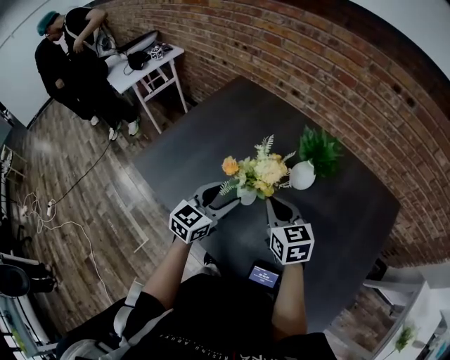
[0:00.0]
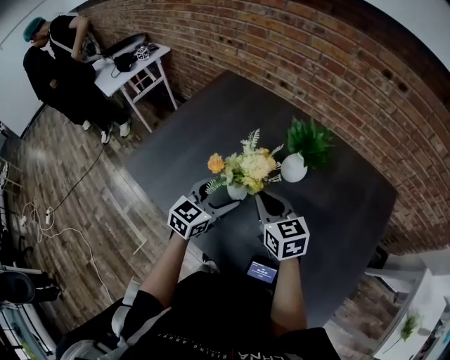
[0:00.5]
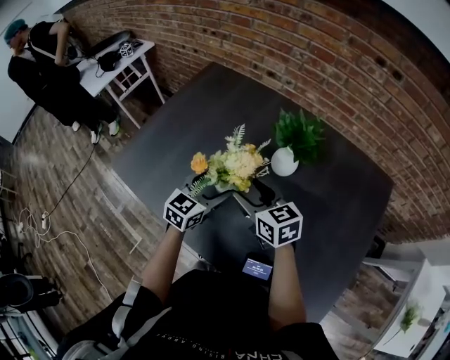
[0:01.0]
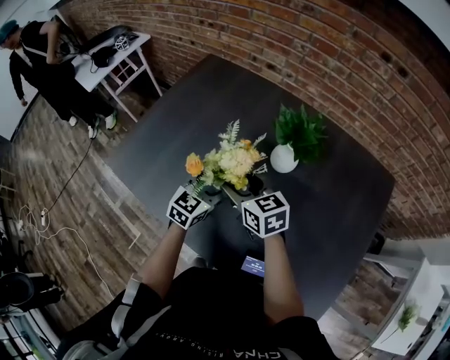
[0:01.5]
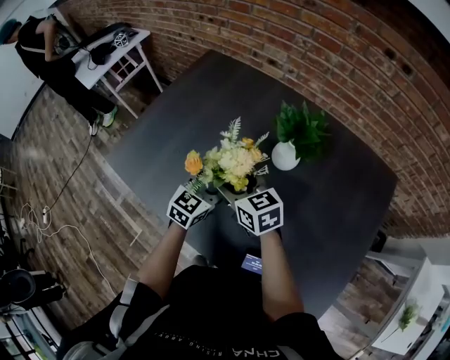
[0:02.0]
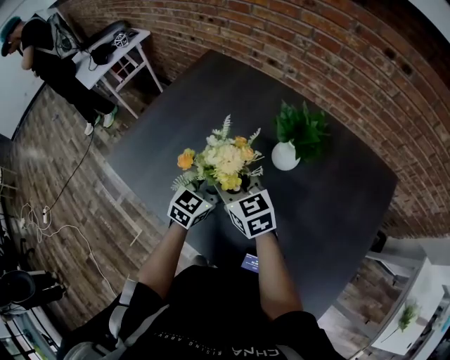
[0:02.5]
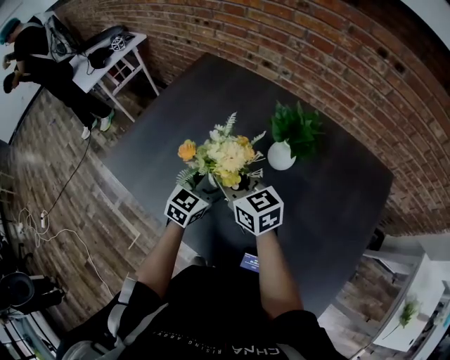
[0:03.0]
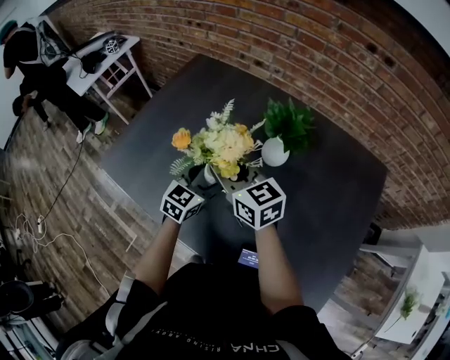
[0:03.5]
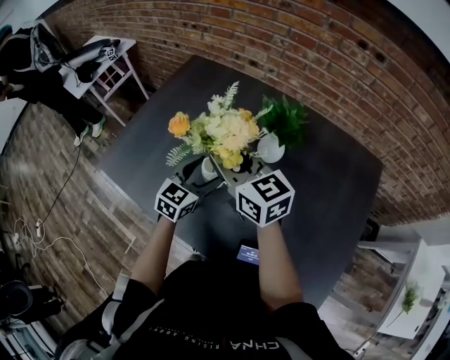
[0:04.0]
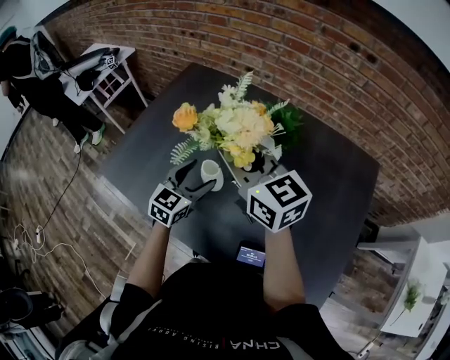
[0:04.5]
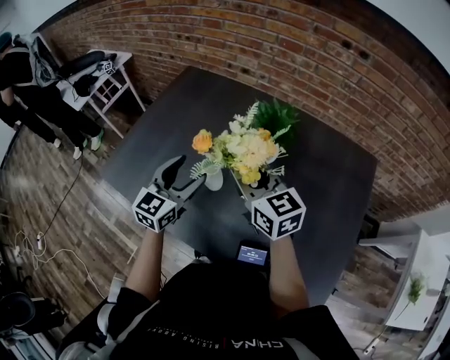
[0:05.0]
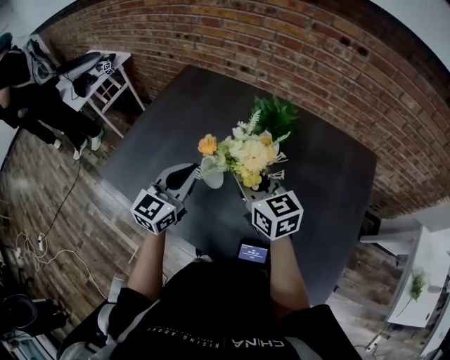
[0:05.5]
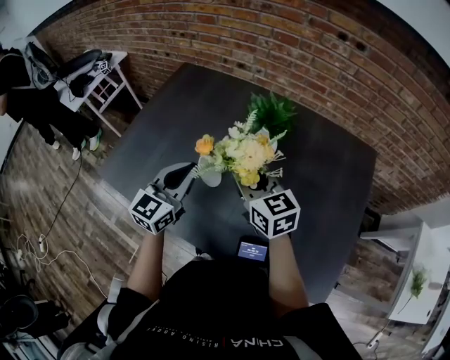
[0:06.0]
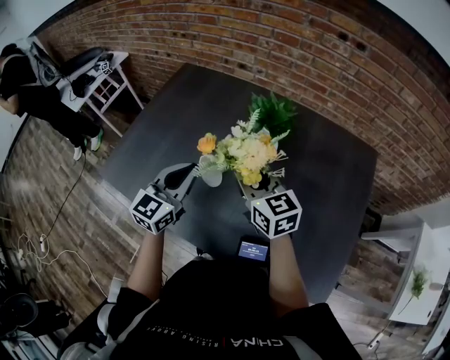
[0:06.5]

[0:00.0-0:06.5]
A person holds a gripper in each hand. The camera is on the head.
0:00.0 to 0:02.0: The left gripper heads downward and forward, covering roughly 10 cm; the right gripper goes approximately 5 cm to the left, and opens up.
0:02.0 to 0:04.5: The left gripper shifts by about 5 cm; the right gripper heads upward, covering roughly 20 cm, swivels roughly 20 degrees, and closes.
0:04.5 to 0:06.5: The left gripper is displaced upward by approximately 10 cm, and closes. The right gripper moves downward, some 10 cm.

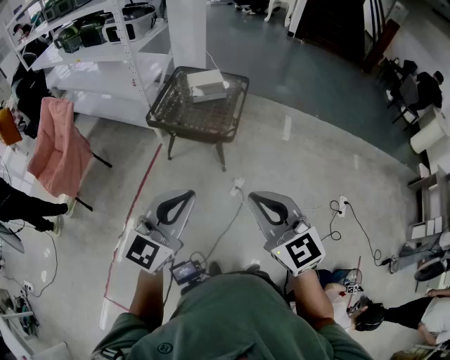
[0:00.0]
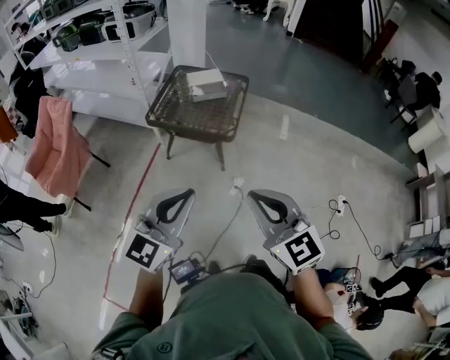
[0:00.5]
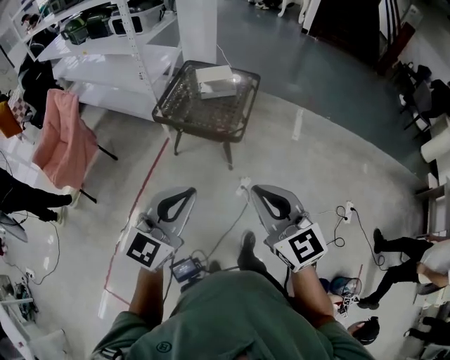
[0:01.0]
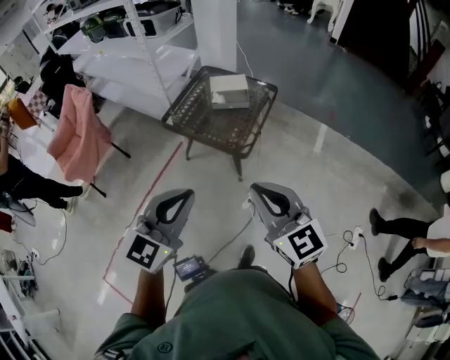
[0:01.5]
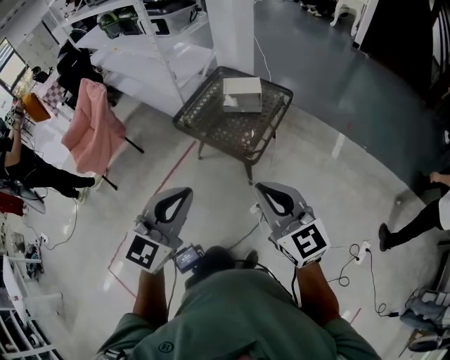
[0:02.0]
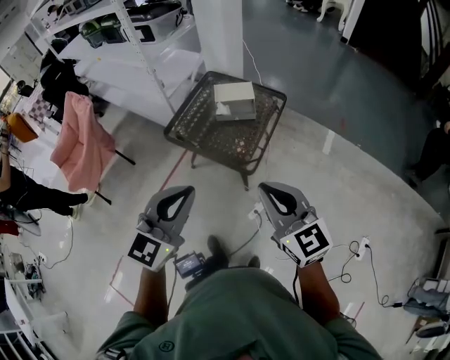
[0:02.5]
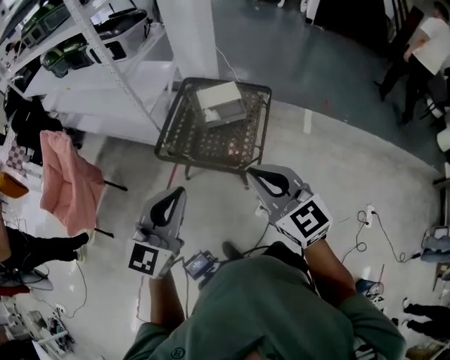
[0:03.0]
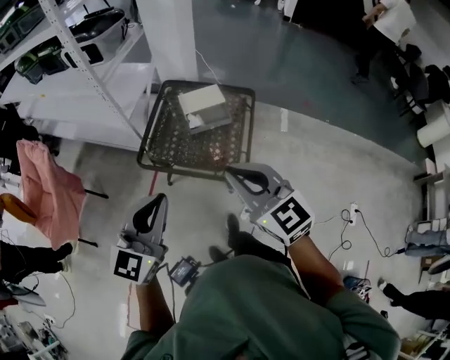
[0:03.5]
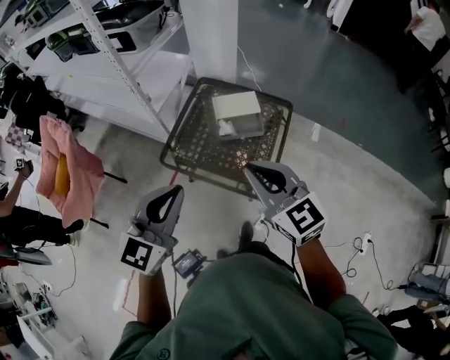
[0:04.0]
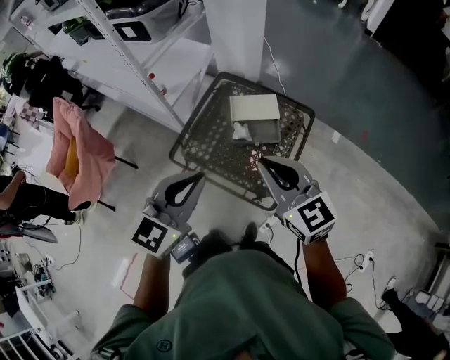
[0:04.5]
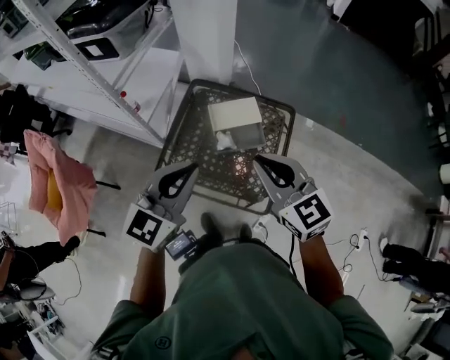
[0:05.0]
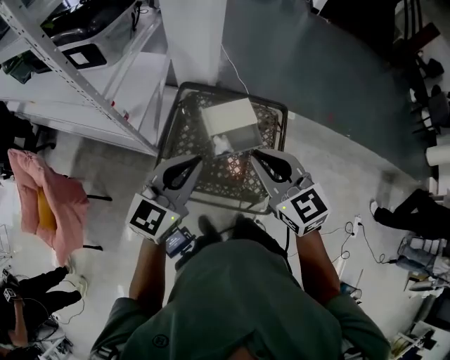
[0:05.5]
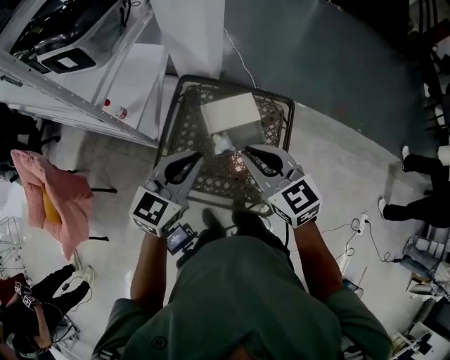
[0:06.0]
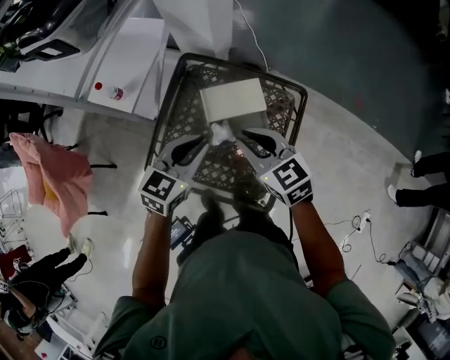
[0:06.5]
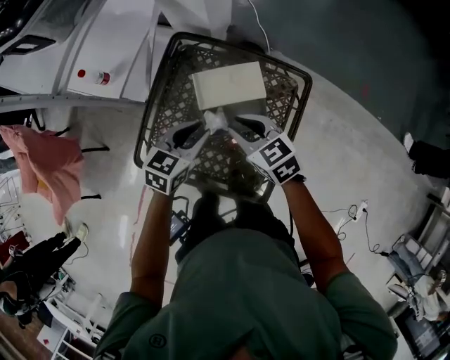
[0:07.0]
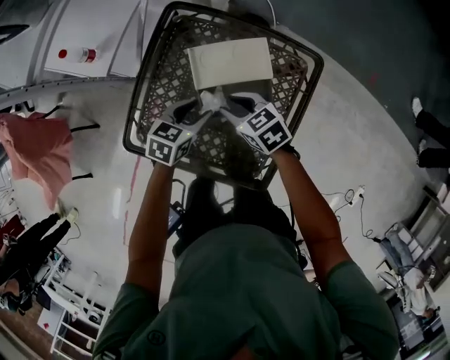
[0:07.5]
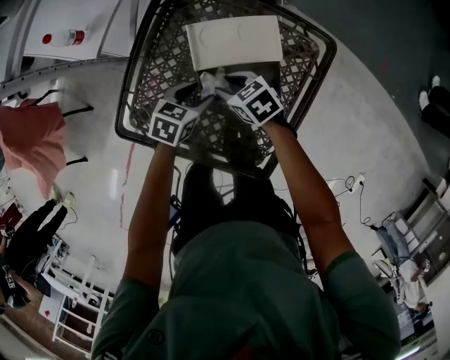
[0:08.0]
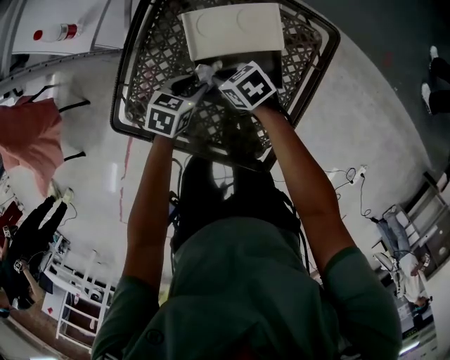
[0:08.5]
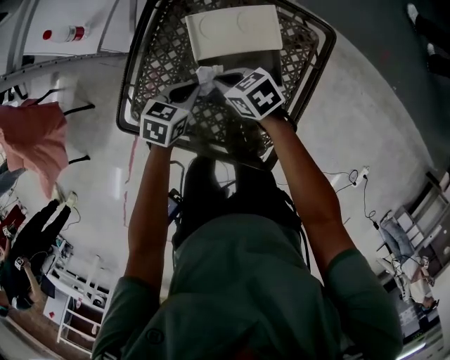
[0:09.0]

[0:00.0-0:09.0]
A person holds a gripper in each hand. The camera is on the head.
0:00.0 to 0:02.0: Both grippers move forward and to the right, about 25 cm. The left gripper changes its angle by about 20 degrees.
0:02.0 to 0:04.5: The pair of grippers is taken forward, approximately 50 cm.
0:04.5 to 0:07.0: The right gripper is displaced downward and forward by about 40 cm, and swivels about 30 degrees; the left gripper shifts about 40 cm forward and downward, rotates about 30 degrees, and opens.
0:07.0 to 0:09.0: The two grippers go roughly 15 cm downward. The left gripper closes. Meanwhile the right gripper swivels about 20 degrees, and closes.

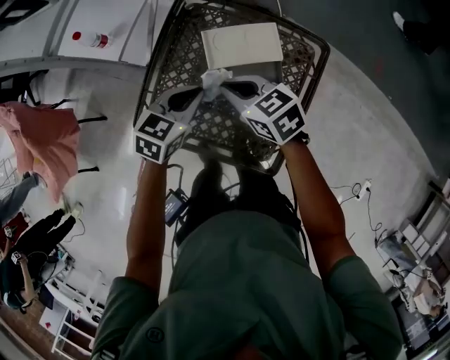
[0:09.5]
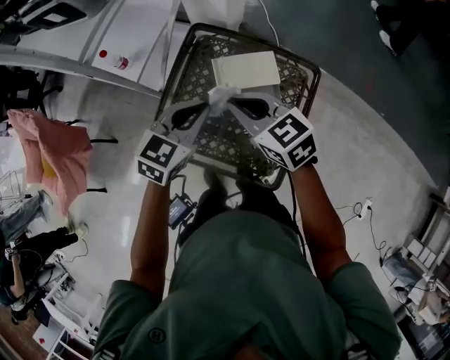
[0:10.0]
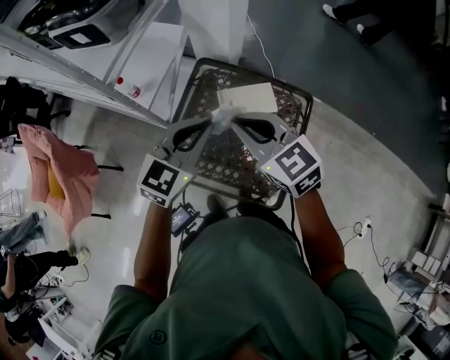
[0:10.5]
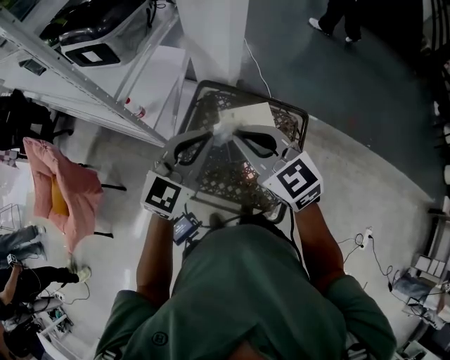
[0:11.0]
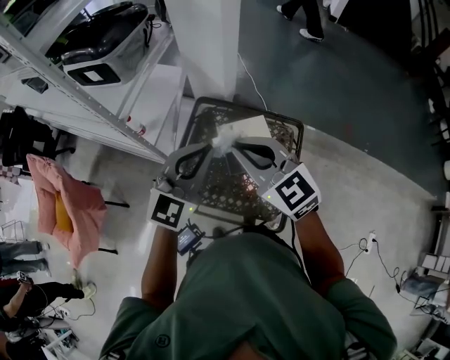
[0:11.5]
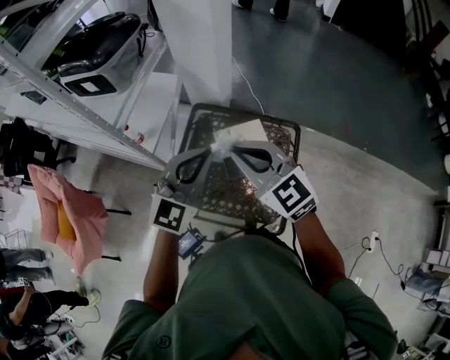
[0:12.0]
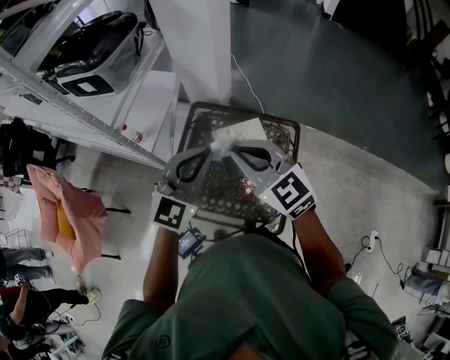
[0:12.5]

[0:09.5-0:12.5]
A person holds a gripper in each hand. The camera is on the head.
0:09.5 to 0:11.0: Both grippers move upward, approximately 30 cm. The left gripper swivels roughly 40 degrees; the right gripper turns by some 30 degrees.
0:11.0 to 0:12.5: The grippers make only small movements.

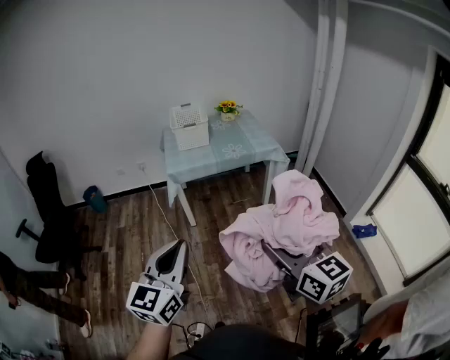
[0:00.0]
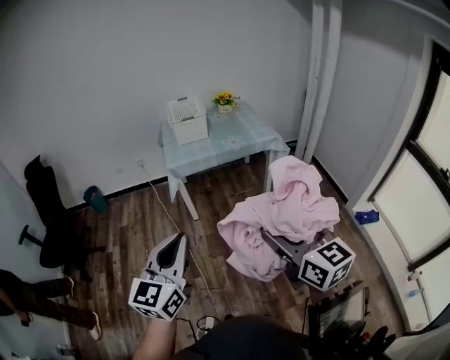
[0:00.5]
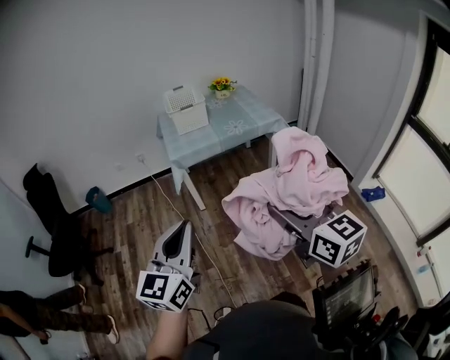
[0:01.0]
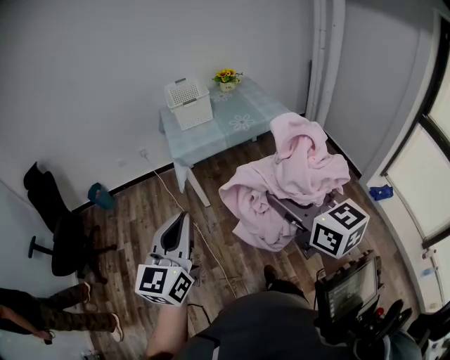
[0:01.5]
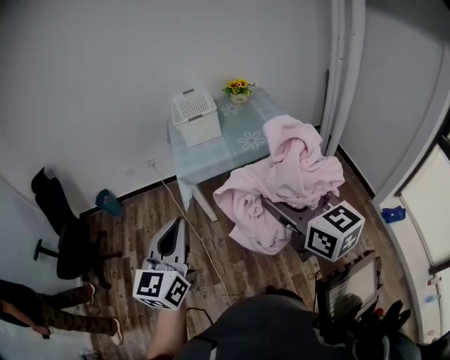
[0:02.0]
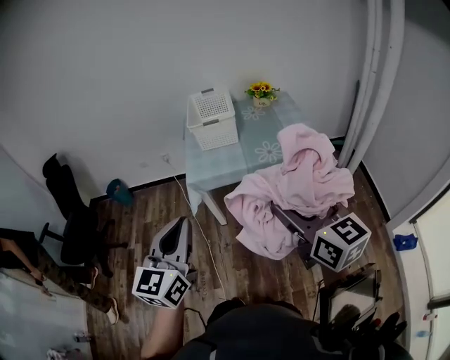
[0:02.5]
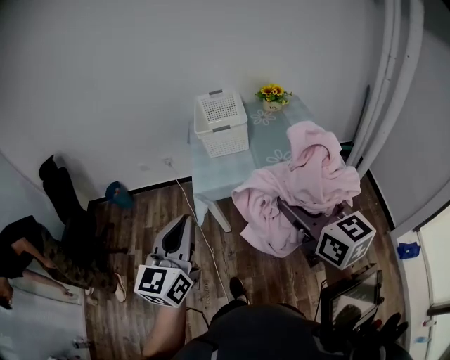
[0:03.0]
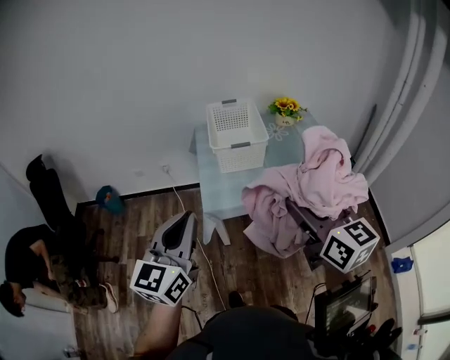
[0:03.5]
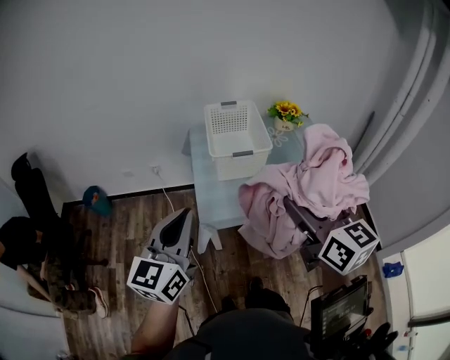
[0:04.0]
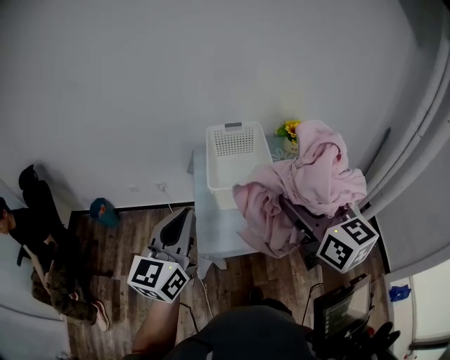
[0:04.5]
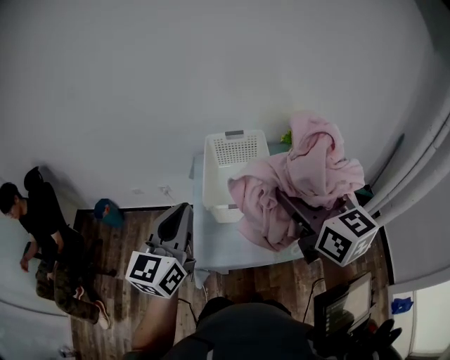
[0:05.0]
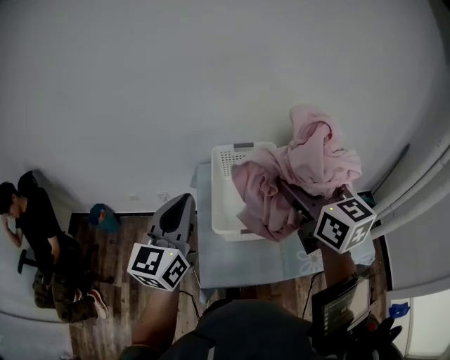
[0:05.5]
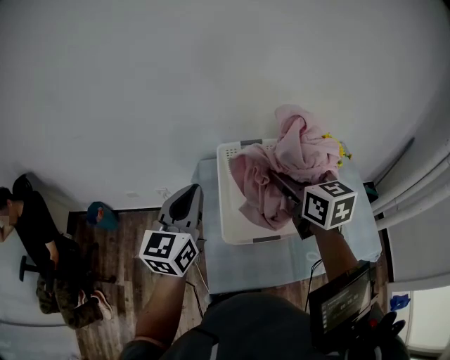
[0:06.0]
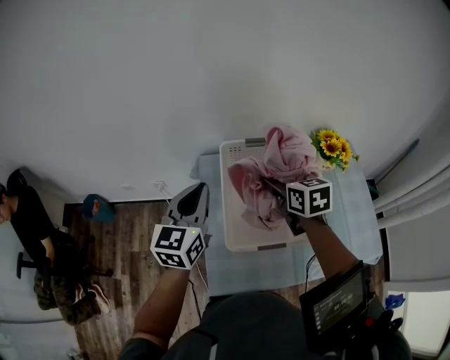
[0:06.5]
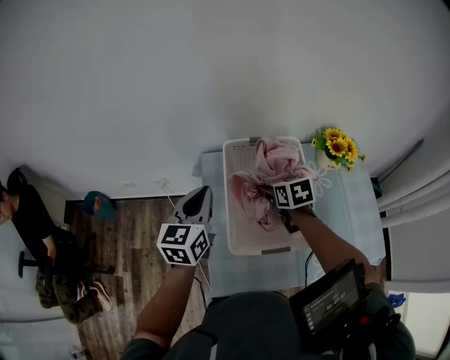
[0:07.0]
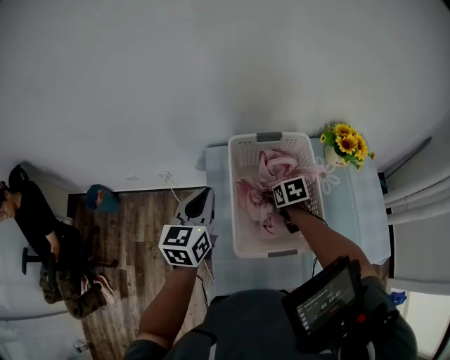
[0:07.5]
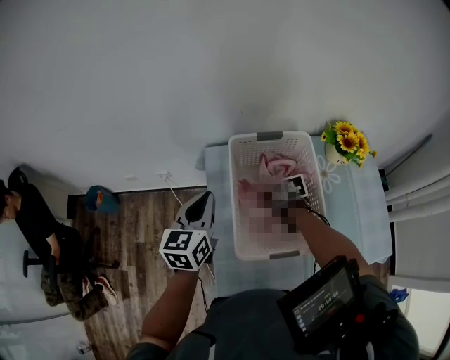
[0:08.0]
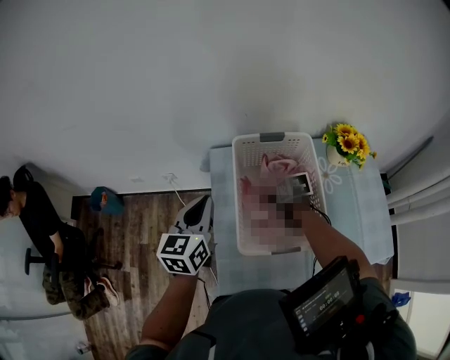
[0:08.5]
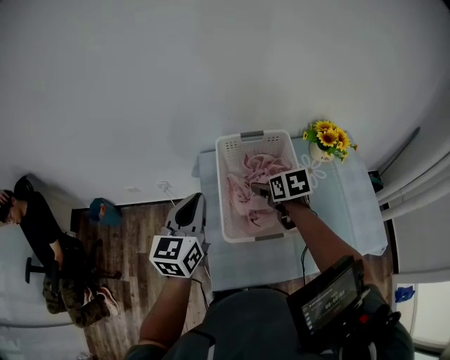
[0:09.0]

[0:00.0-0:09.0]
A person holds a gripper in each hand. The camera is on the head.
0:00.0 to 0:02.0: Both grippers travel together forward, some 25 cm.
0:02.0 to 0:04.5: The right gripper travels upward by about 5 cm, and moves about 15 cm forward and comes back. Meanwhile the left gripper travels forward and back again, some 15 cm each way.
0:04.5 to 0:07.0: The pair of grippers is taken forward, roughly 50 cm. The right gripper goes approximately 30 cm downward, and tips its fingers downward by roughly 50 degrees; the left gripper changes its angle by roughly 20 degrees.
0:07.0 to 0:09.0: The left gripper goes some 5 cm backward. Meanwhile the right gripper reaches about 15 cm downward, then returns.
